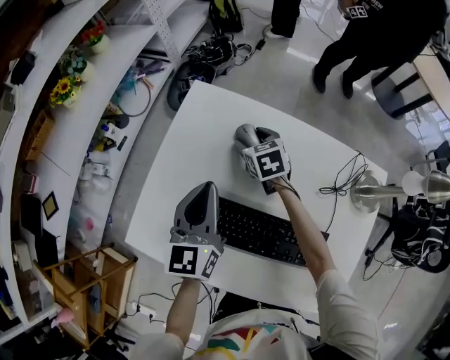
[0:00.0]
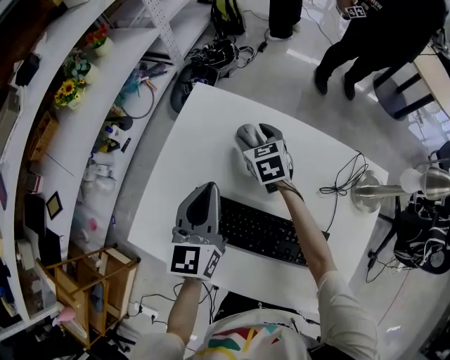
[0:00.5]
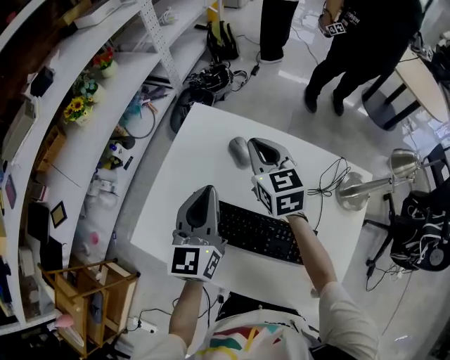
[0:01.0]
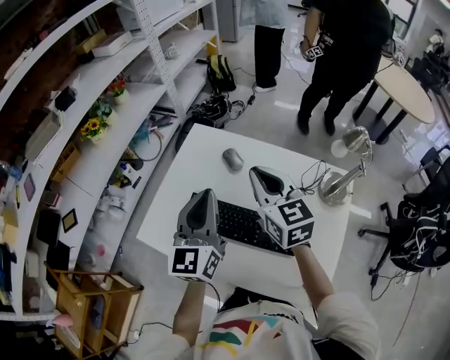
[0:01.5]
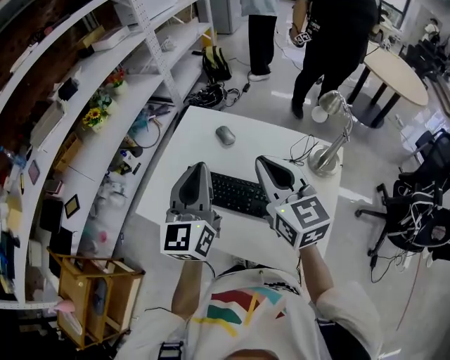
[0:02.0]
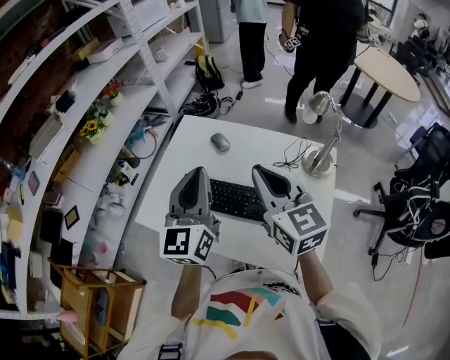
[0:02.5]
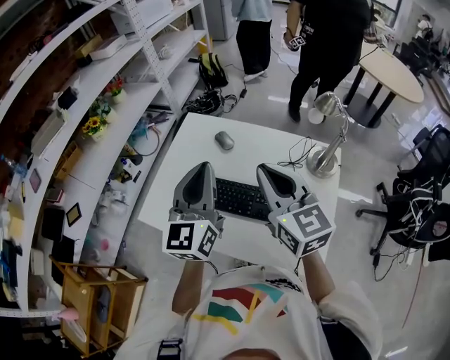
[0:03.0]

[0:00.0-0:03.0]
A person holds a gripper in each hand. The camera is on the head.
0.0 to 1.5 s: The right gripper is displaced upward and backward by approximately 40 cm, tips its fingers upward by about 30 degrees, and closes. Meanwhile the left gripper is displaced upward and backward by approximately 20 cm.
1.5 to 3.0 s: The right gripper moves backward and upward, some 15 cm, while the left gripper heads backward and upward, covering some 10 cm.

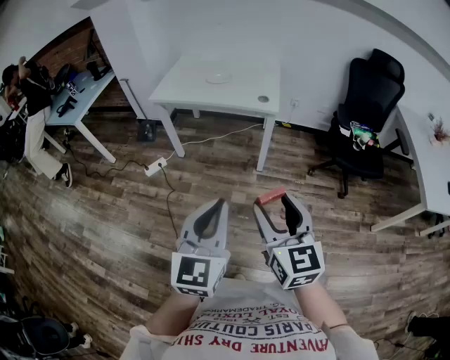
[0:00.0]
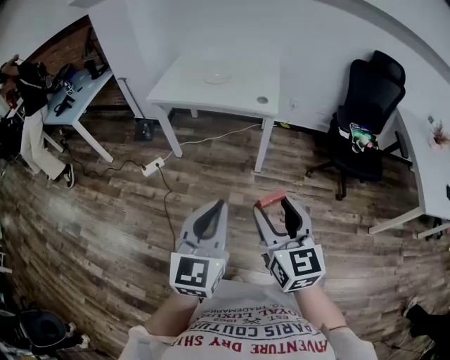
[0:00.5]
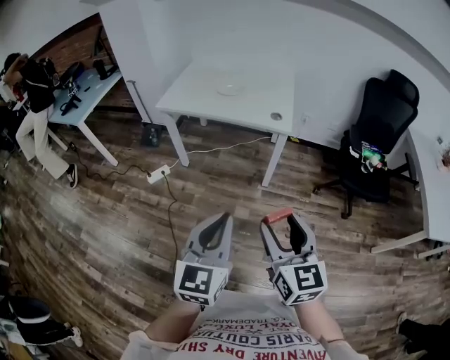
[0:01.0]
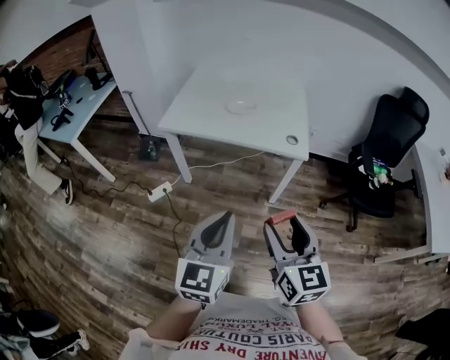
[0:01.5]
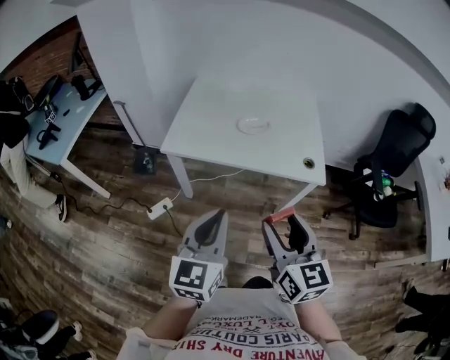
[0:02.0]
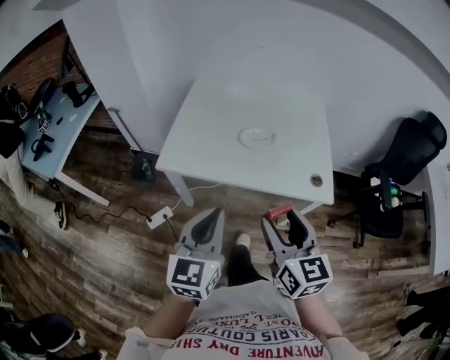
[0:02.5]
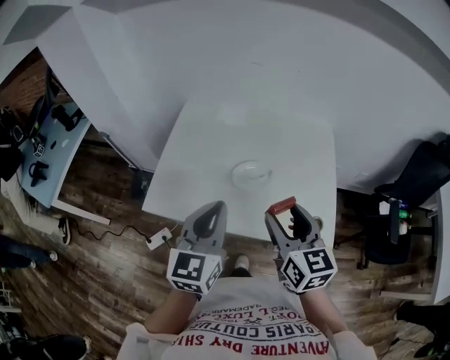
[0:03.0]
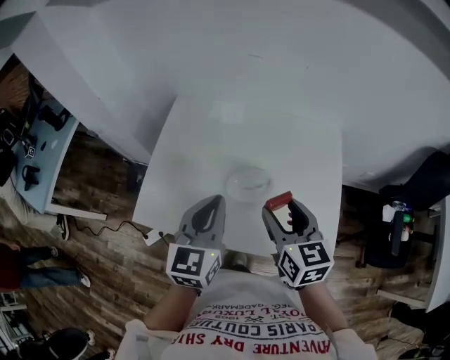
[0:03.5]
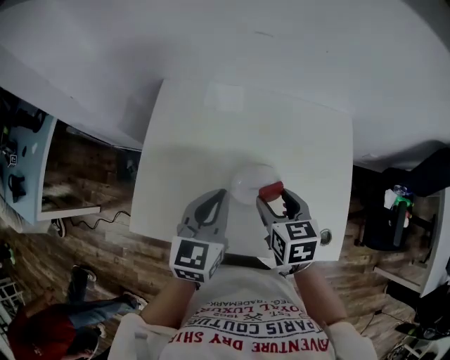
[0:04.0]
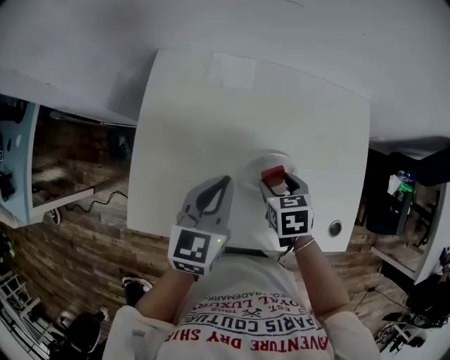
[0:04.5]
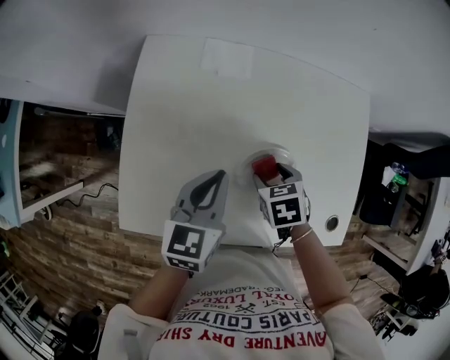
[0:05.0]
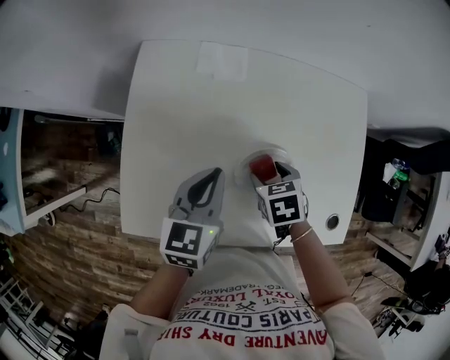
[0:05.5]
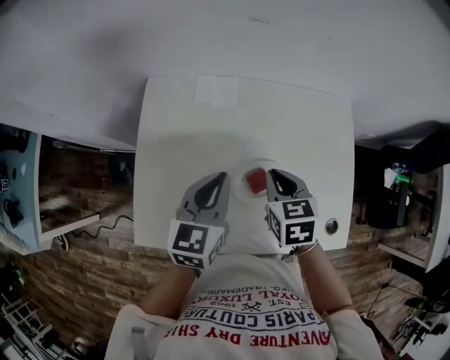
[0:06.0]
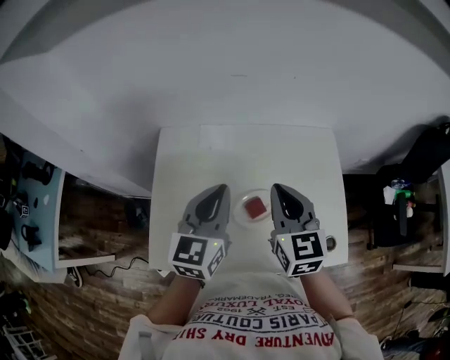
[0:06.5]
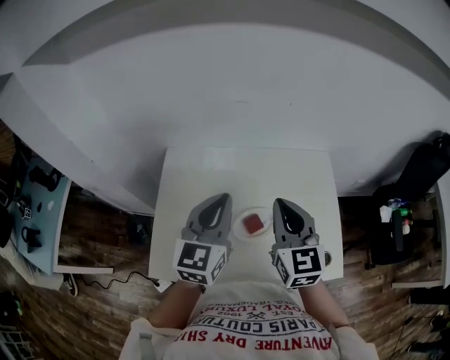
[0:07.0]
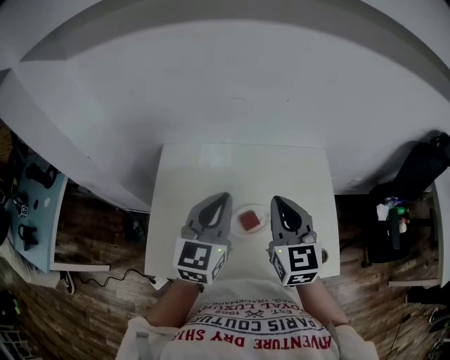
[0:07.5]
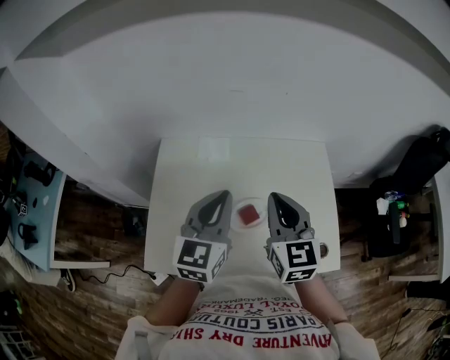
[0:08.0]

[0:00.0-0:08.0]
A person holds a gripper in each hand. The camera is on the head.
0.0 to 2.0 s: The pair of grippers is taken forward and to the left, approximately 50 cm.
2.0 to 4.0 s: The pair of grippers is taken forward, about 50 cm. The right gripper points its fingers roughly 30 degrees further downward.
4.0 to 6.0 s: Both grippers travel together forward, roughly 5 cm. The left gripper travels downward and back again, roughly 10 cm each way. The right gripper moves roughly 10 cm downward and comes back, and closes up.
6.0 to 8.0 s: Both grippers travel together upward, roughly 15 cm. The right gripper tilts its fingers roughly 30 degrees upward.

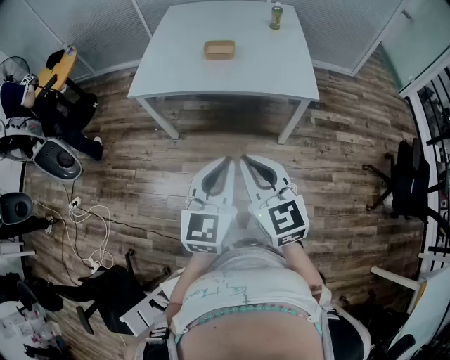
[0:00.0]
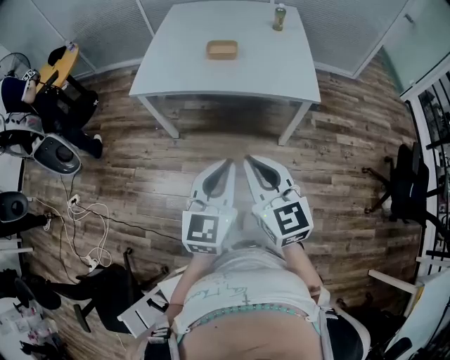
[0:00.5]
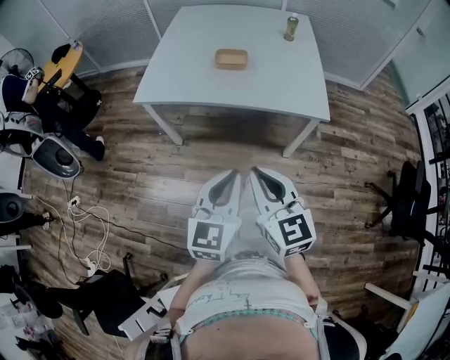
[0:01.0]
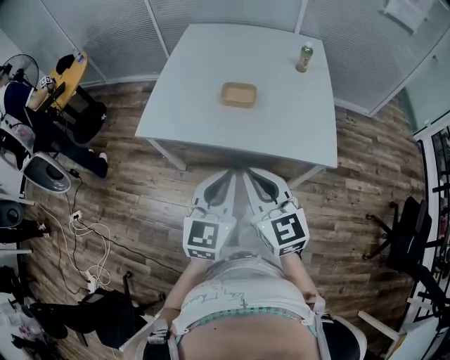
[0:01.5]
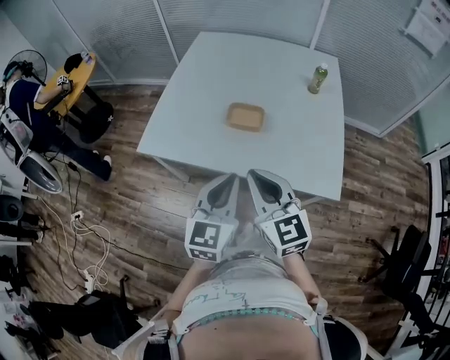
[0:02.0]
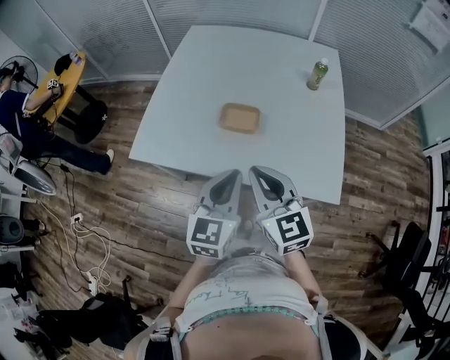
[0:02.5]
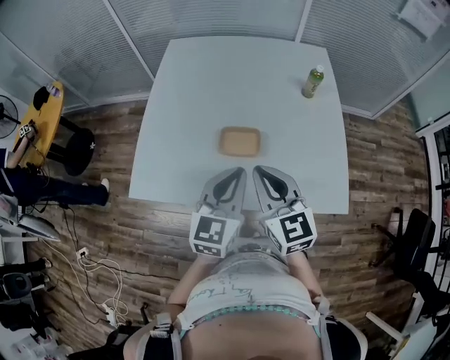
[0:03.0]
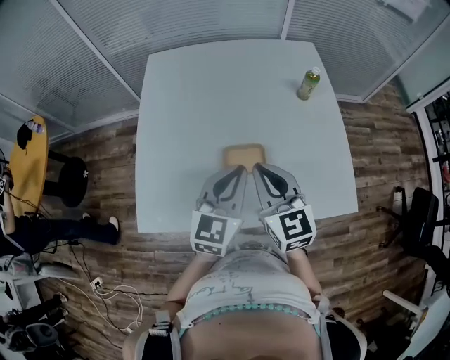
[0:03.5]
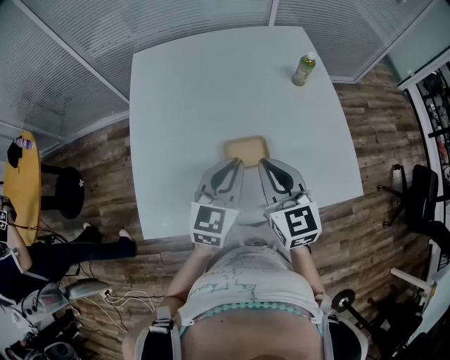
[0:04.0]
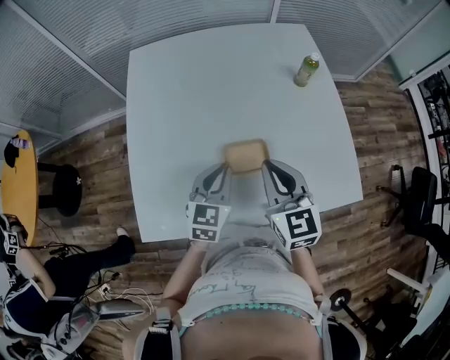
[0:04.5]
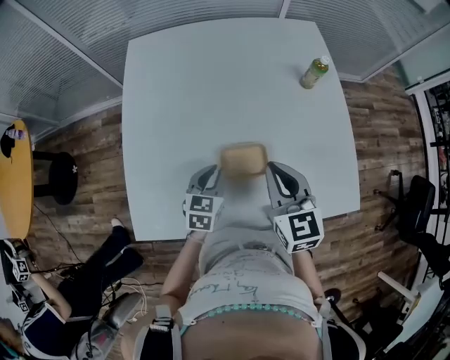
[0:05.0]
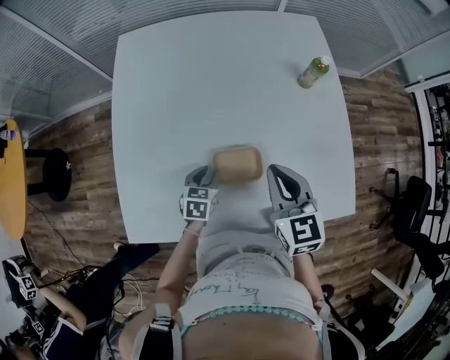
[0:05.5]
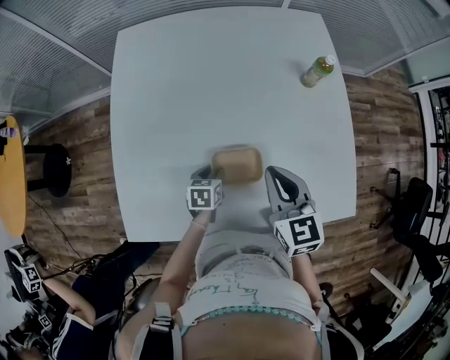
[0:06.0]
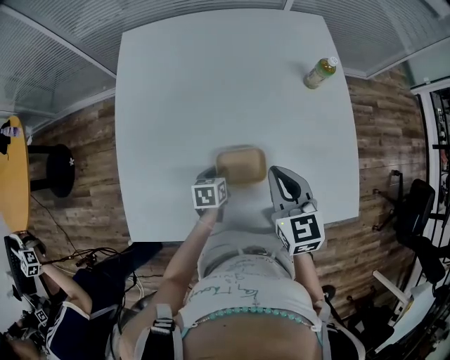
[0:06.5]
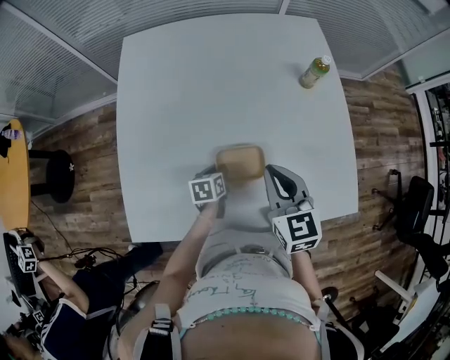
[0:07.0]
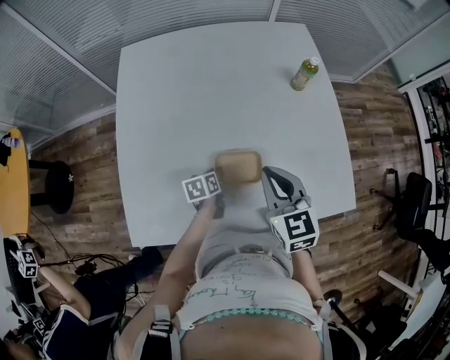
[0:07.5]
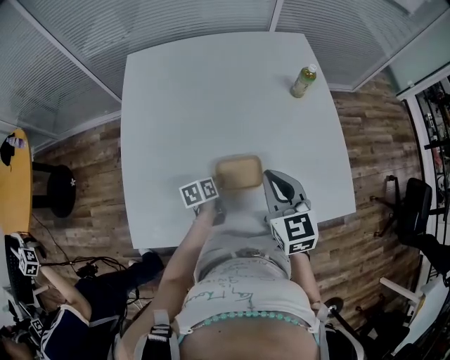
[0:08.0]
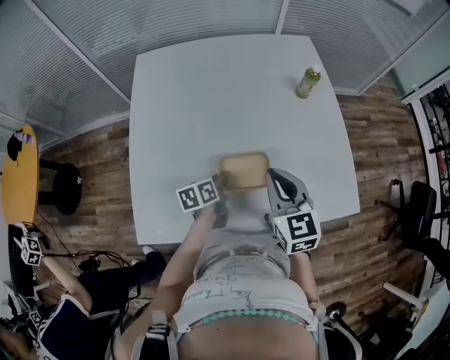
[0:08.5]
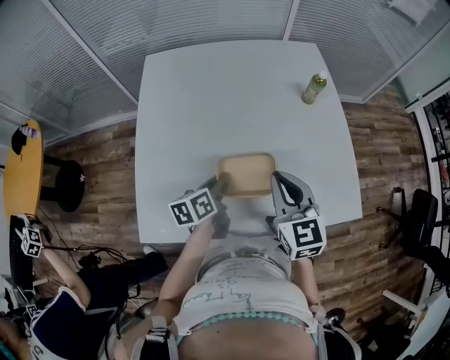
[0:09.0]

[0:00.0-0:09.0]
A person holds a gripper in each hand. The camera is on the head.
0.0 to 2.0 s: The grippers both shift forward by approximately 35 cm.
2.0 to 4.5 s: The right gripper ends up approximately 30 cm from where it was, and turns by about 30 degrees. The left gripper shifts by about 35 cm, and rotates about 30 degrees.
4.5 to 7.0 s: The right gripper moves roughly 5 cm. Meanwhile the left gripper is displaced downward by about 20 cm, and swivels some 40 degrees.
7.0 to 9.0 s: The left gripper shifts approximately 15 cm upward, and swivels some 30 degrees; the right gripper moves about 5 cm.

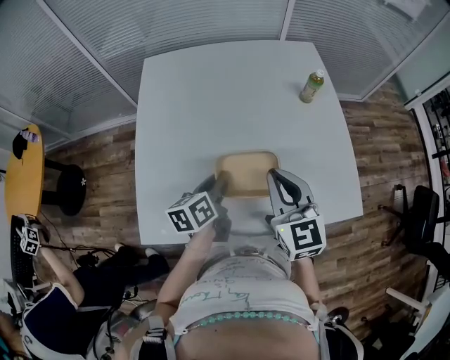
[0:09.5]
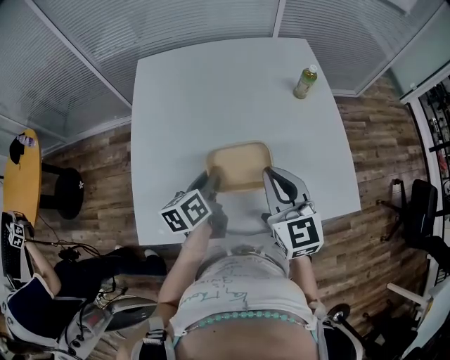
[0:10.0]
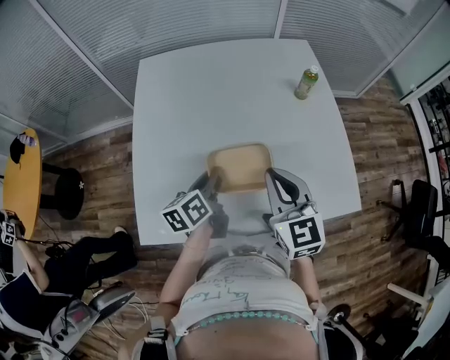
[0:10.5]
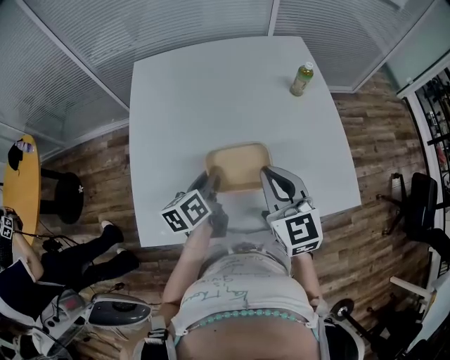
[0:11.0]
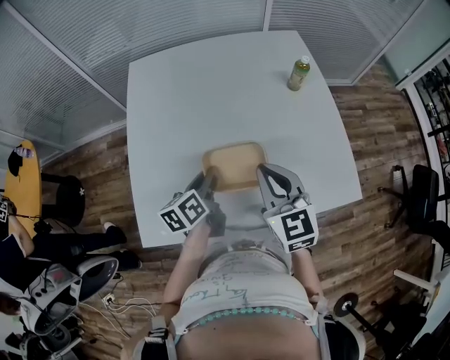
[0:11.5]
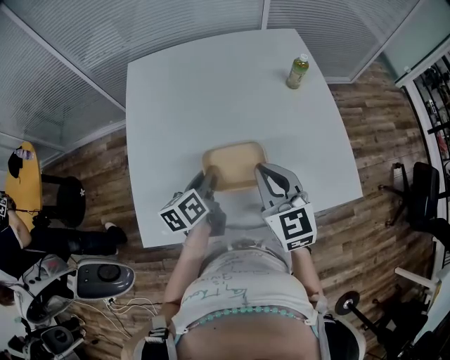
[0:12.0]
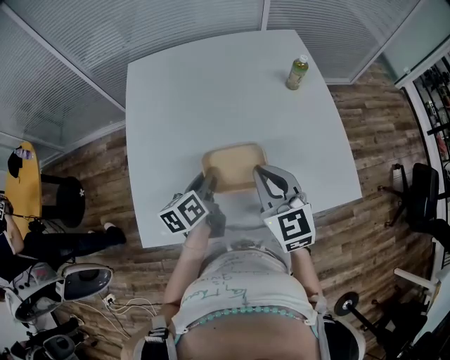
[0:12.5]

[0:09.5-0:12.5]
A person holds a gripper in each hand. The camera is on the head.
9.5 to 11.0 s: Neither gripper changes place.
11.0 to 12.5 s: The grippers stay close to where they were, moving slightly.

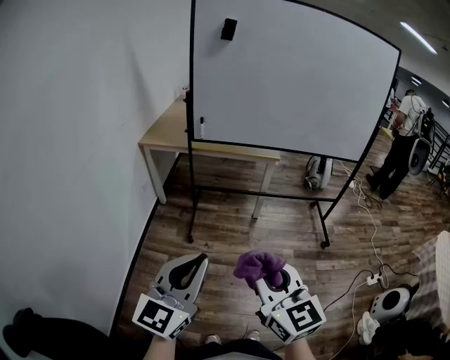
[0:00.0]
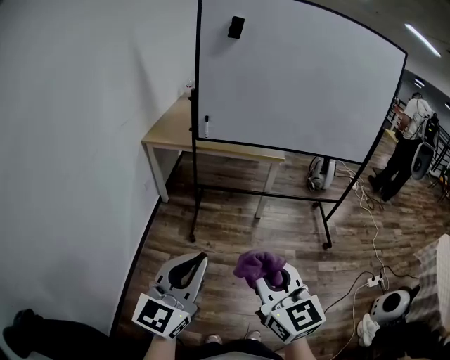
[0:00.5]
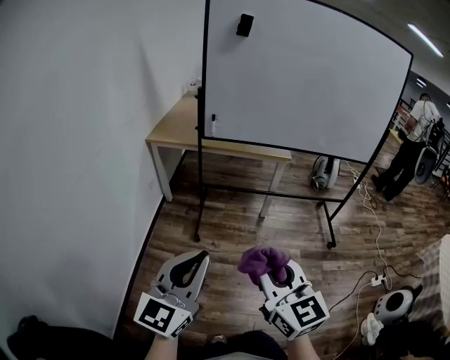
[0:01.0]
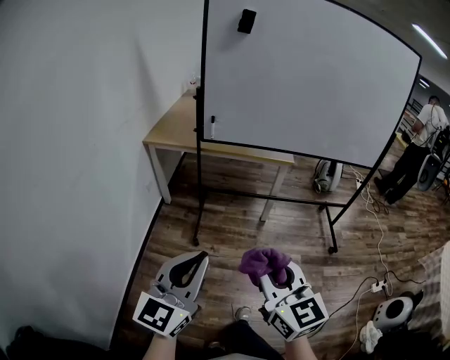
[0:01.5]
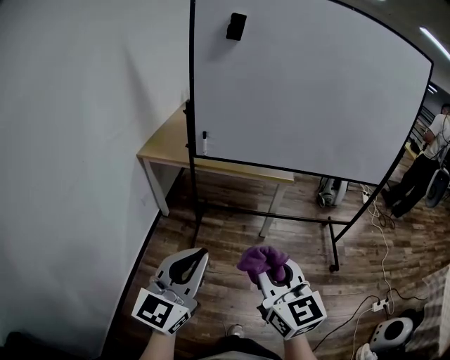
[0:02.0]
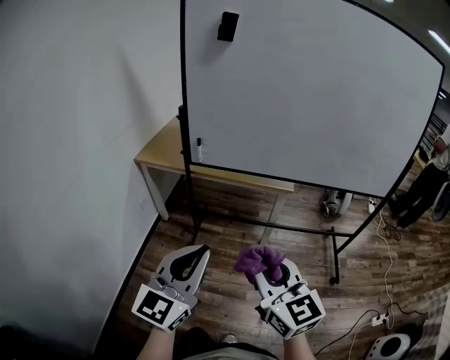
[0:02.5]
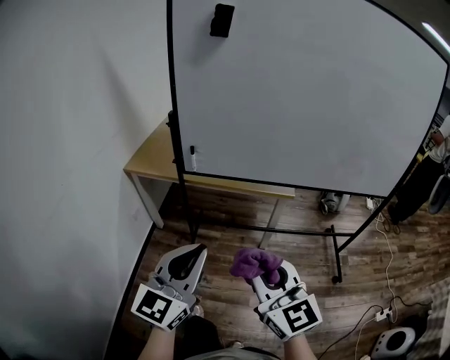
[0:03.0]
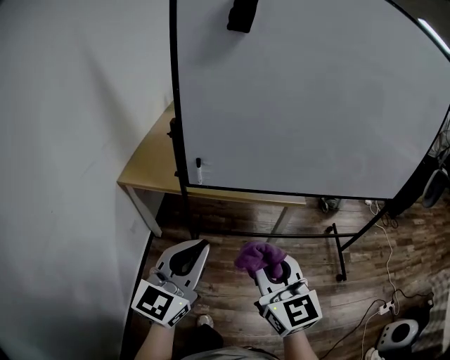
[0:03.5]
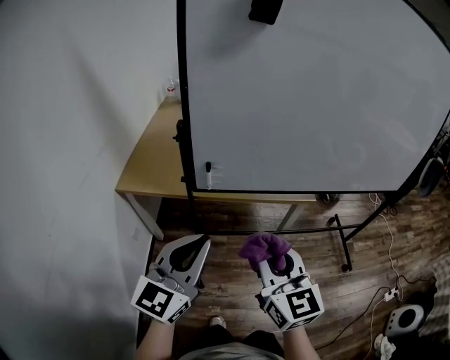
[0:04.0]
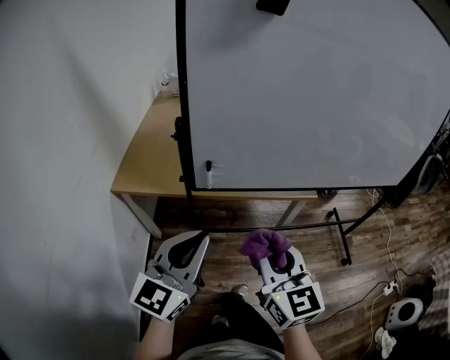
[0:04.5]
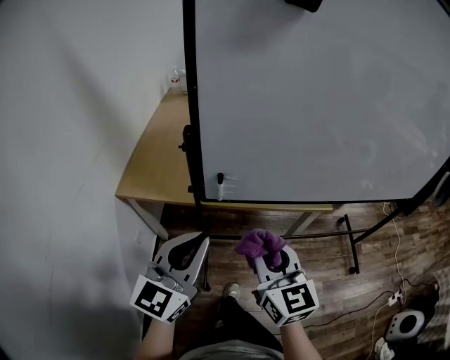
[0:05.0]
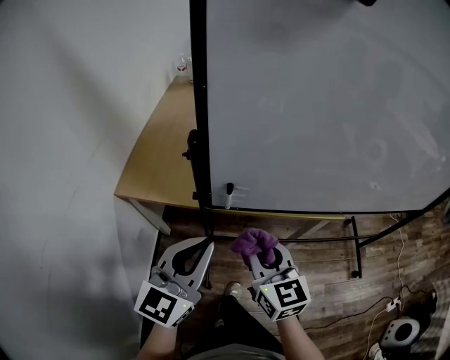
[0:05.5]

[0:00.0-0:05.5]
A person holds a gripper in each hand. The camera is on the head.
0.0 to 2.0 s: The grippers both shift forward by roughly 20 cm.
2.0 to 3.5 s: The two grippers go approximately 25 cm forward.
3.5 to 5.5 s: The right gripper heads forward, to the left and downward, covering about 30 cm, while the left gripper travels forward and to the left by about 25 cm.
